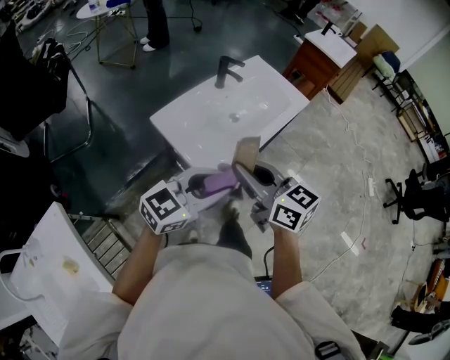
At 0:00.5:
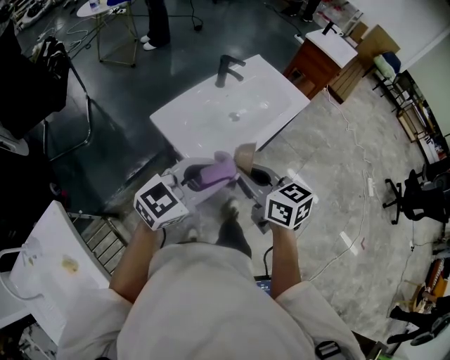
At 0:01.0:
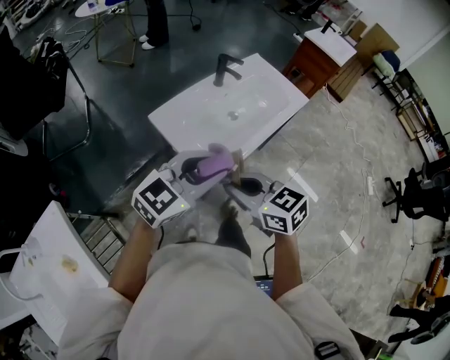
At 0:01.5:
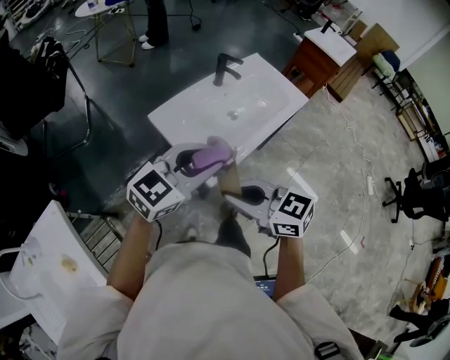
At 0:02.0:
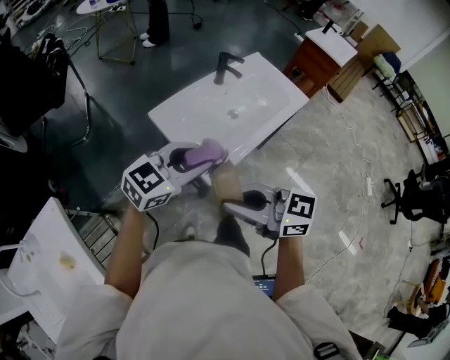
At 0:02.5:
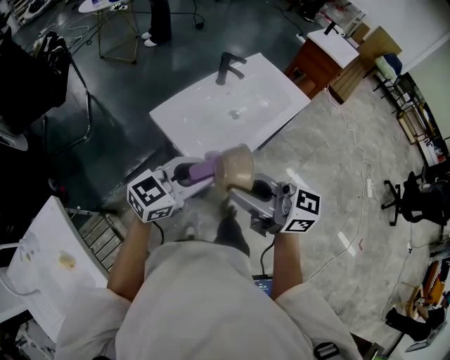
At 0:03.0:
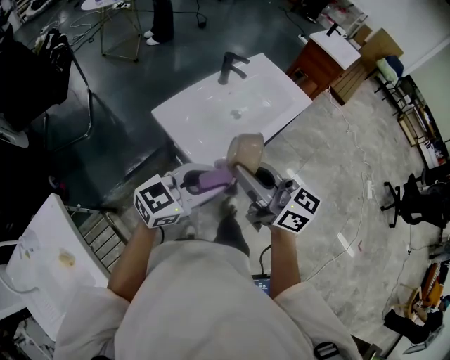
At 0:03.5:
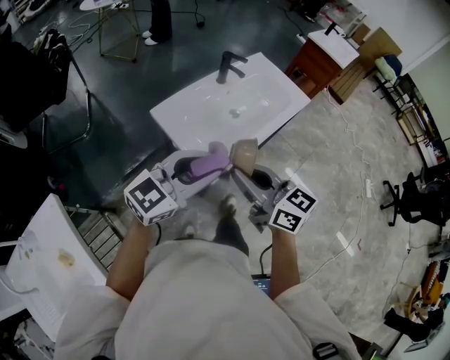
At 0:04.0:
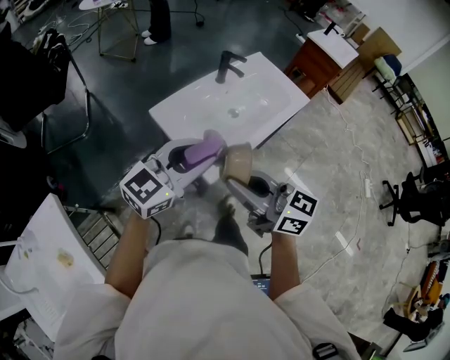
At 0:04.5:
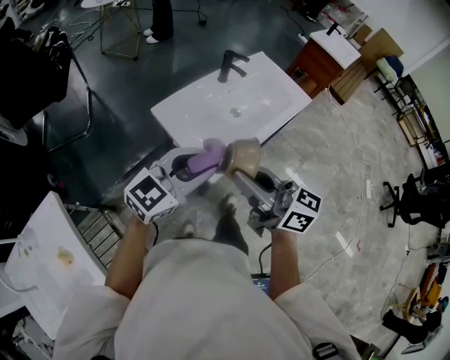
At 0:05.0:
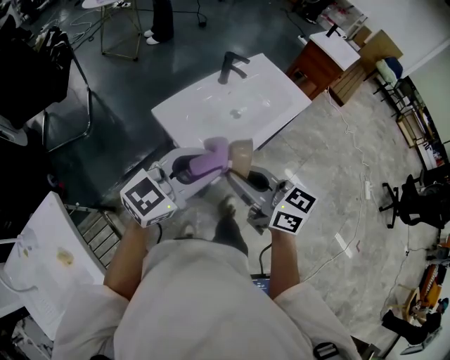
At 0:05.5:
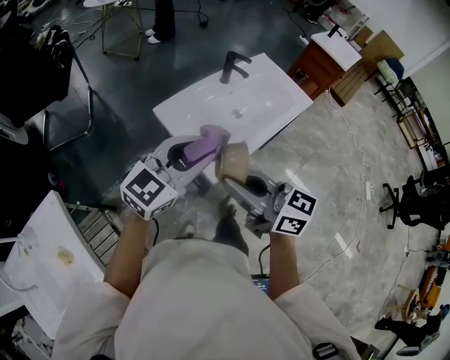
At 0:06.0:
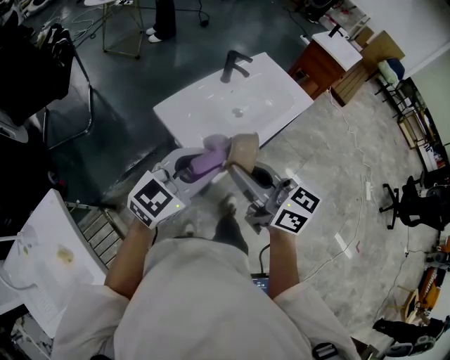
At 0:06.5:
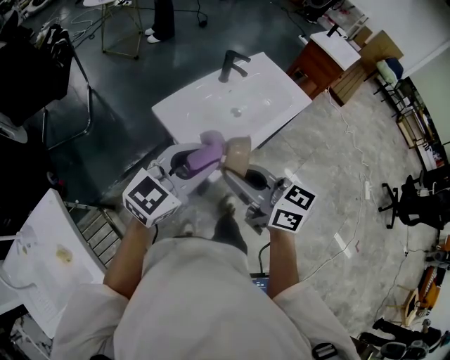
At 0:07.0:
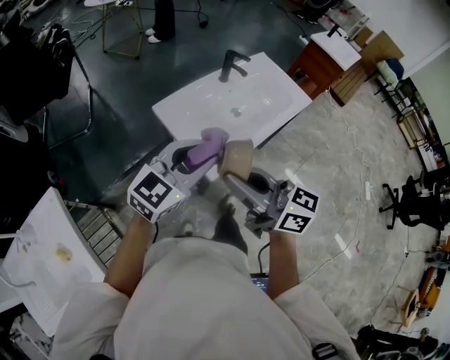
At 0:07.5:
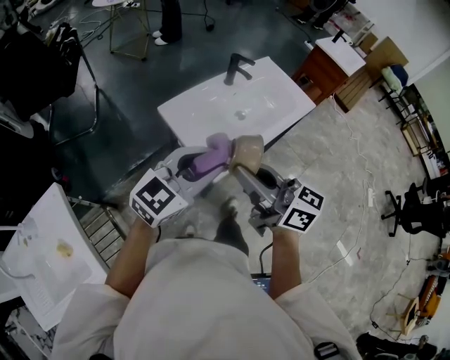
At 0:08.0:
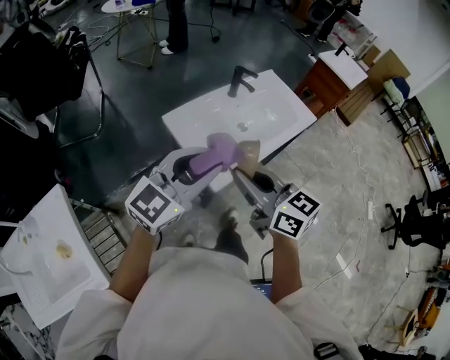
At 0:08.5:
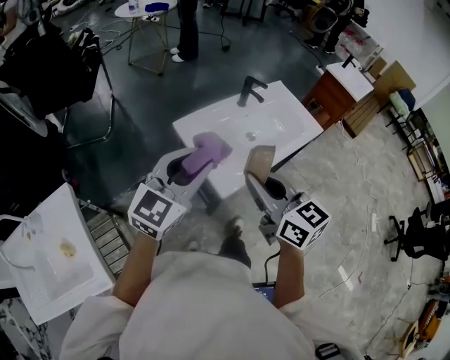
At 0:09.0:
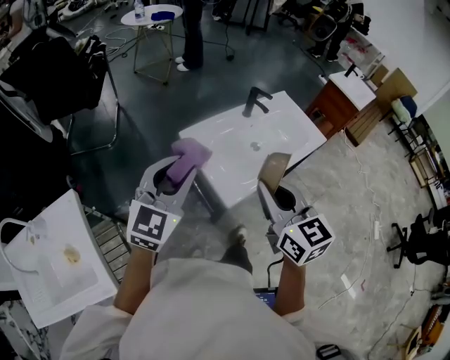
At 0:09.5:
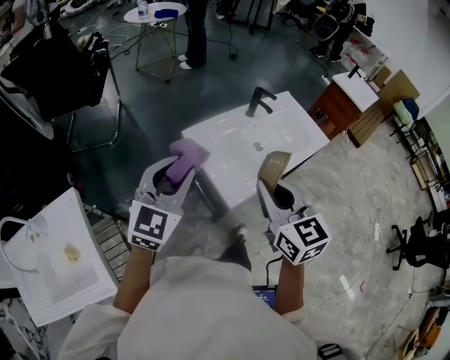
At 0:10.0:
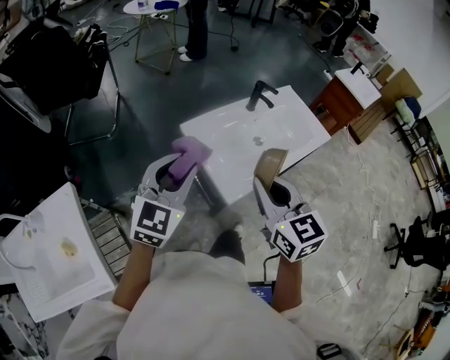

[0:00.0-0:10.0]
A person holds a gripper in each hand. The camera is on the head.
0:00.0 to 0:02.0: The left gripper changes place by some 5 cm. Meanwhile the right gripper shifts by about 10 cm, and changes its angle by roughly 30 degrees.
0:04.0 to 0:06.0: The grippers make only small movements.
0:06.0 to 0:08.0: The left gripper heads upward, covering some 5 cm.
0:08.0 to 0:10.0: The right gripper rotates some 20 degrees; the left gripper is displaced to the left by some 10 cm, and turns by about 30 degrees.

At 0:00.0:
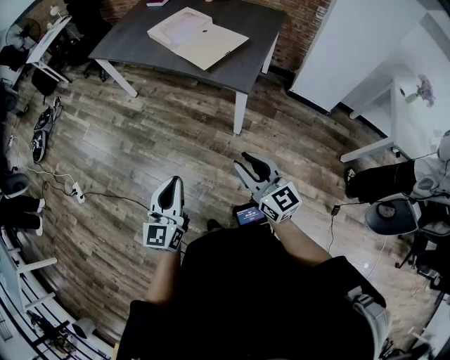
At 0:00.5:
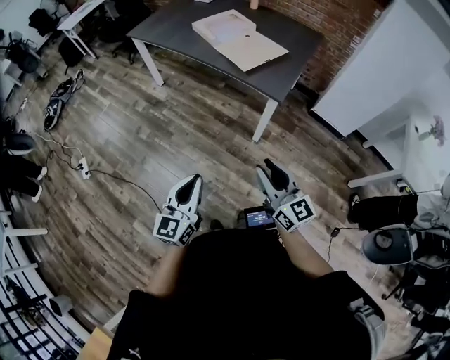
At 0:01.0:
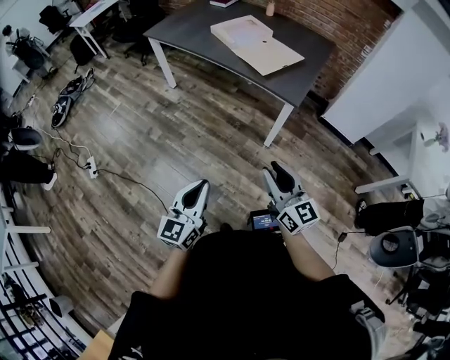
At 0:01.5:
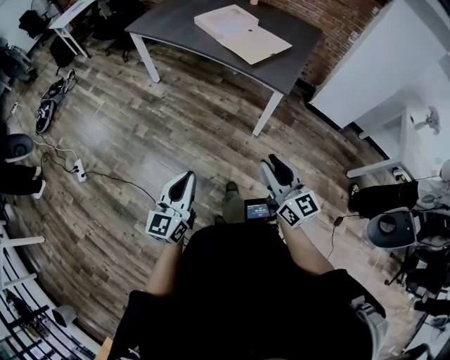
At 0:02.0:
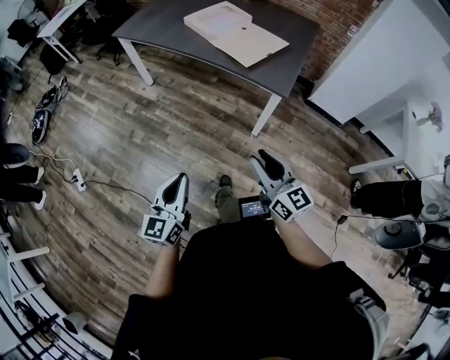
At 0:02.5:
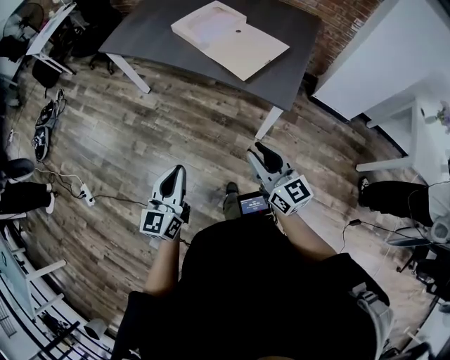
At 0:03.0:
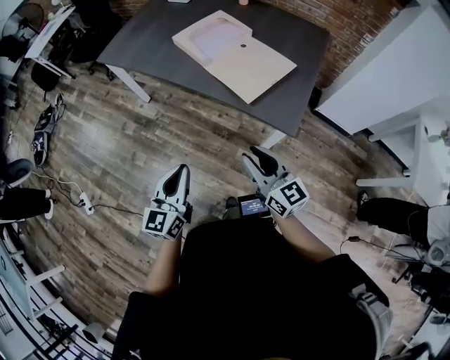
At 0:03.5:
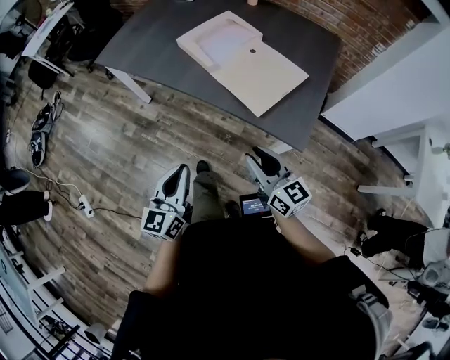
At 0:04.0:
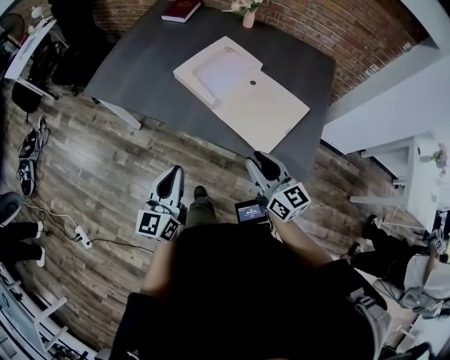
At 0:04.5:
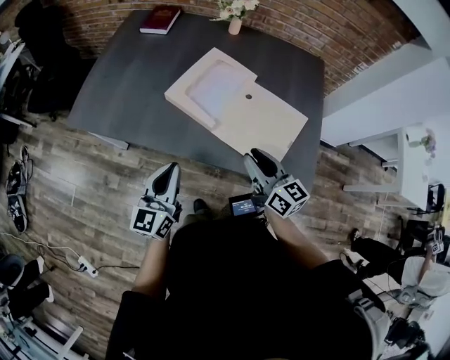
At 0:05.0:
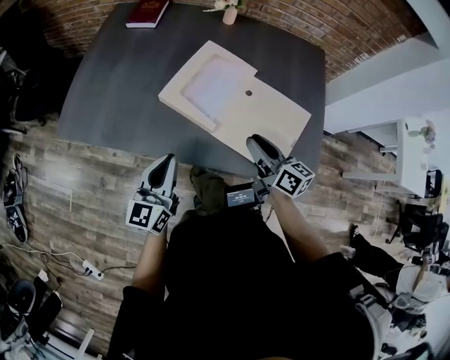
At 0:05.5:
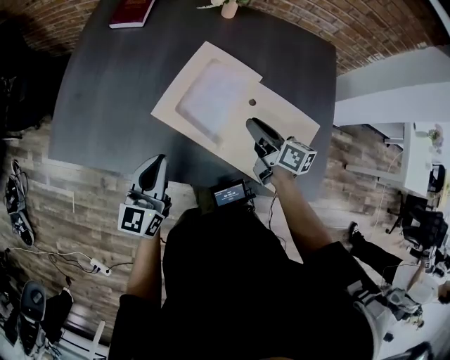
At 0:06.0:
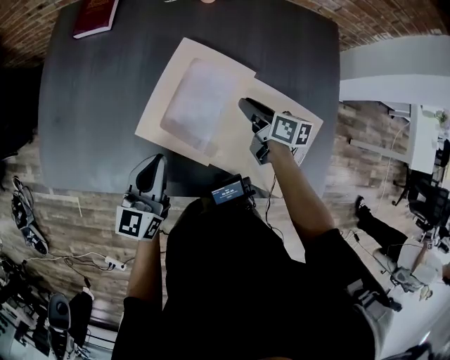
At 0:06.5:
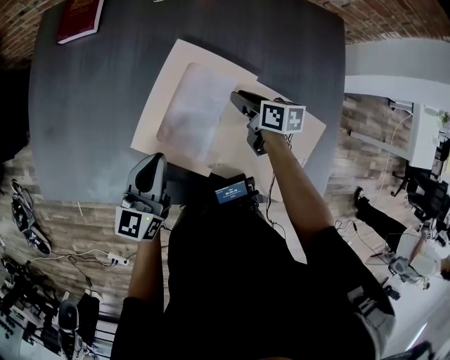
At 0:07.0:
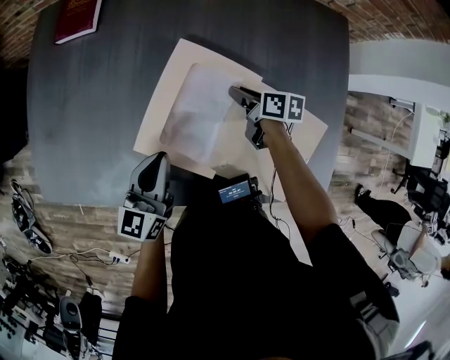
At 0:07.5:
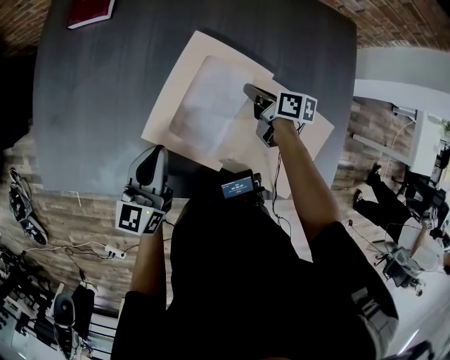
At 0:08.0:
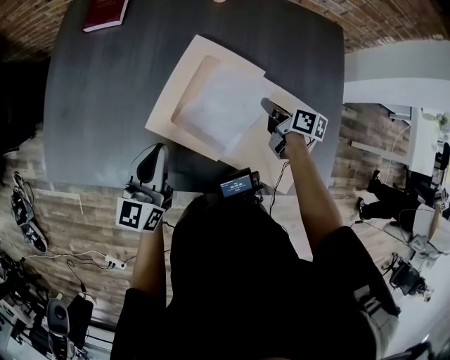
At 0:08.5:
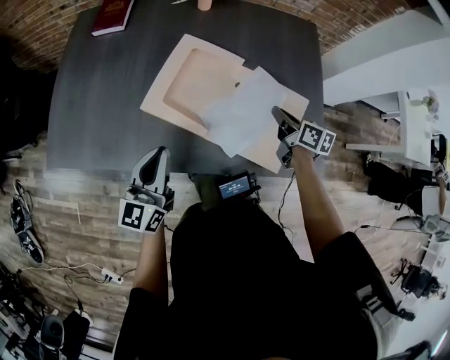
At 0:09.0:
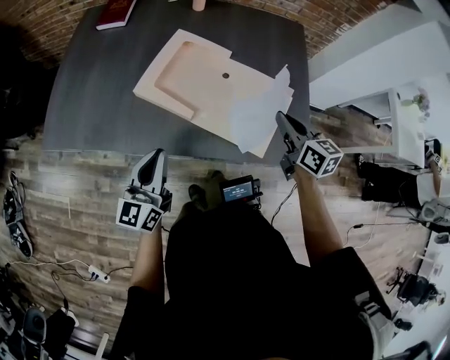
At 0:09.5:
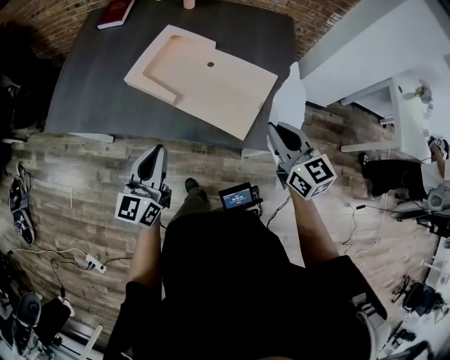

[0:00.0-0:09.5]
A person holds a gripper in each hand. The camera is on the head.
0:00.0 to 0:02.0: The right gripper goes approximately 15 cm to the left and forward. Meanwhile the left gripper moves to the left, about 15 cm.
0:02.0 to 0:04.0: The two grippers travel together, forward, about 50 cm.
0:04.0 to 0:05.5: Both grippers move forward, some 30 cm. The right gripper swivels some 40 degrees.
0:05.5 to 0:07.5: Both grippers travel together forward and downward, some 15 cm. The right gripper changes its angle by some 20 degrees, and closes.
0:07.5 to 0:09.5: The right gripper moves backward and upward, about 50 cm, and rotates around the line of its fingers by approximately 50 degrees, counterclockwise from behind; the left gripper moves backward, approximately 35 cm.

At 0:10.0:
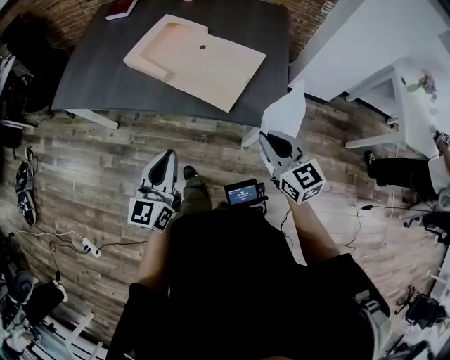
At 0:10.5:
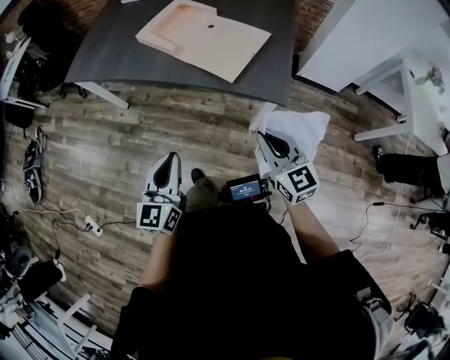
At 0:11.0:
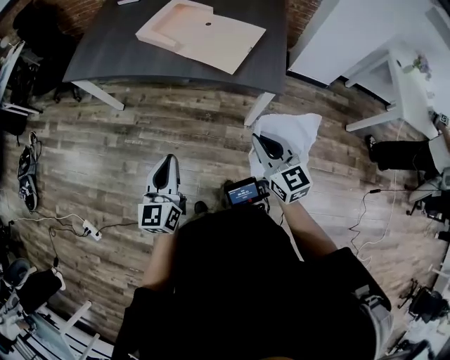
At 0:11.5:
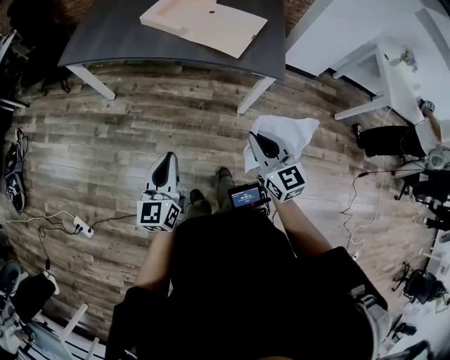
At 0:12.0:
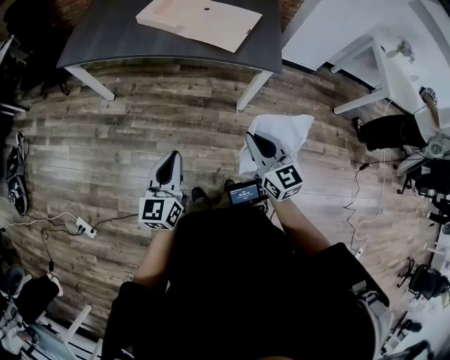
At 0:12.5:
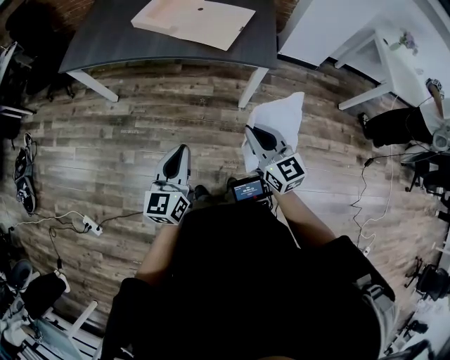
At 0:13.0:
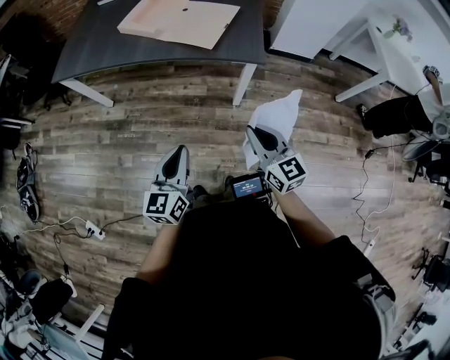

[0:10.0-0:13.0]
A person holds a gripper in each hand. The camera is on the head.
0:10.0 to 0:11.5: Both grippers travel together backward and to the left, some 25 cm.
0:11.5 to 0:13.0: Both grippers travel together to the right, approximately 10 cm.

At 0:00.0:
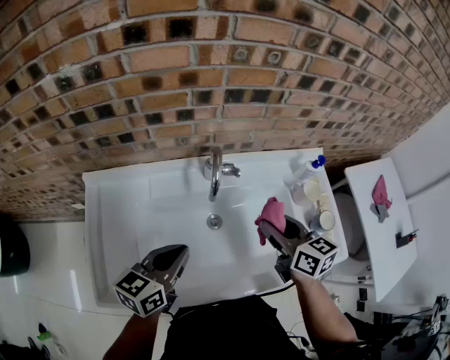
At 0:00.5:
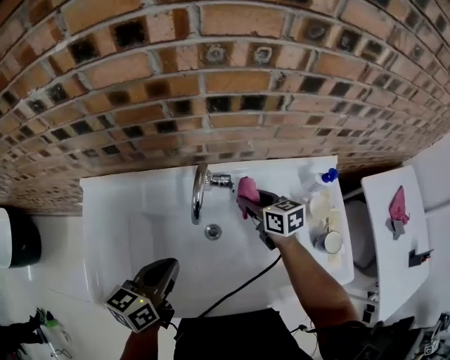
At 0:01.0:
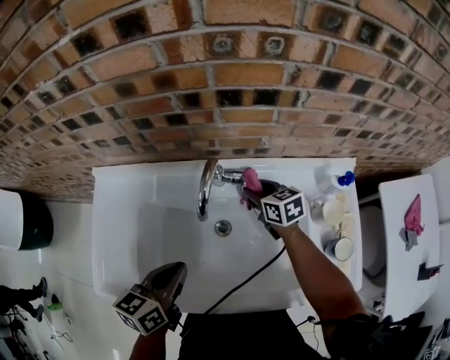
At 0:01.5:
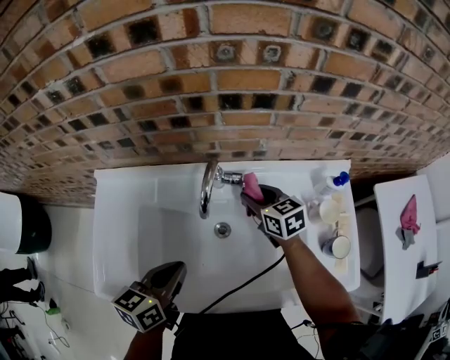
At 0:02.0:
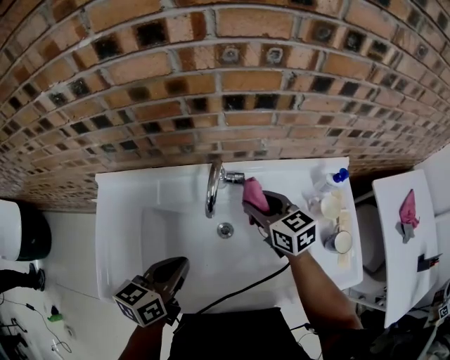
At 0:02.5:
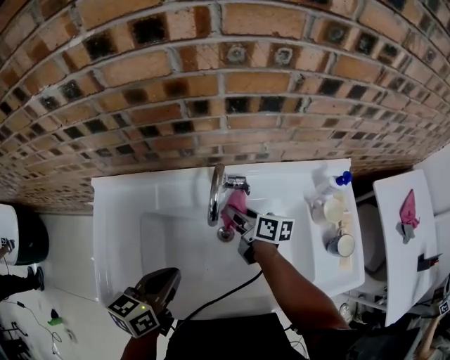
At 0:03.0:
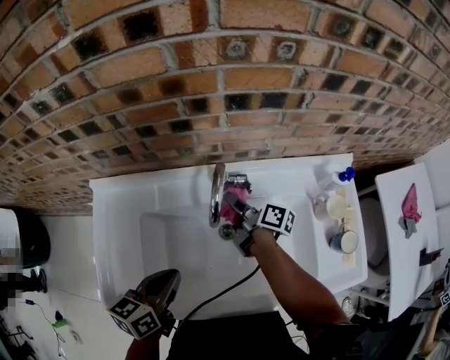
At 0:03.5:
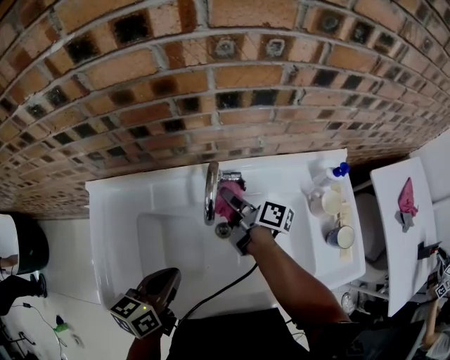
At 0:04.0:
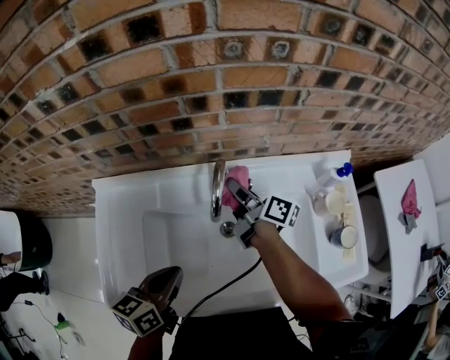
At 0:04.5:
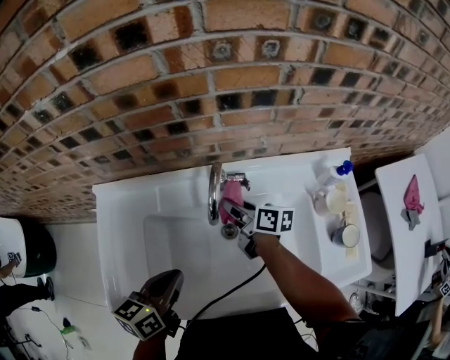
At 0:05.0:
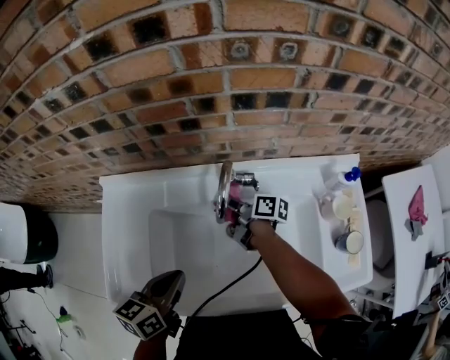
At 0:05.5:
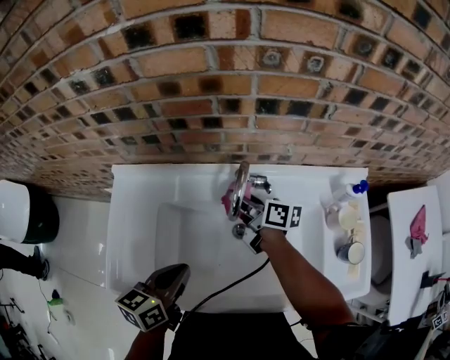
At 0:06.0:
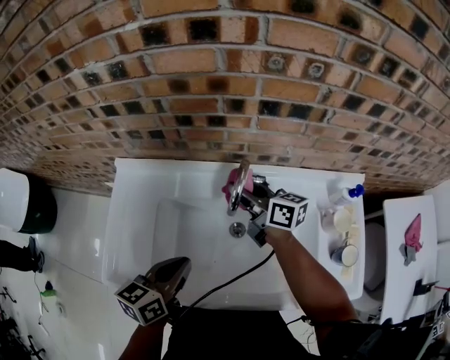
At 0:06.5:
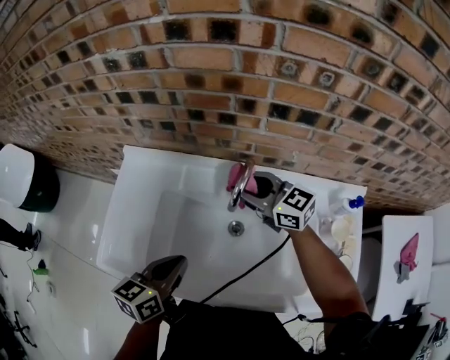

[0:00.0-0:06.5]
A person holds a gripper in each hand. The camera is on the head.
0:00.0 to 0:02.0: The right gripper travels forward and downward by some 10 cm.
0:02.0 to 0:04.5: The right gripper swings up and down, some 10 cm each way, with 2 reversals, and rolls clockwise, seen from behind, by roughly 40 degrees.
0:04.5 to 0:06.5: The right gripper moves upward, approximately 15 cm, and twists some 50 degrees counterclockwise, seen from behind.
